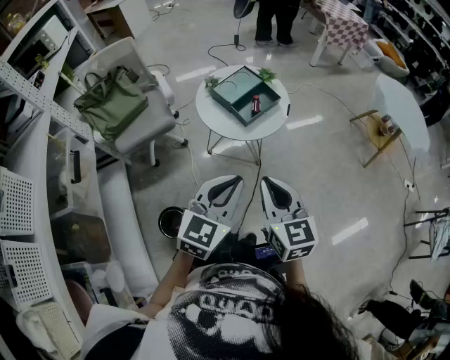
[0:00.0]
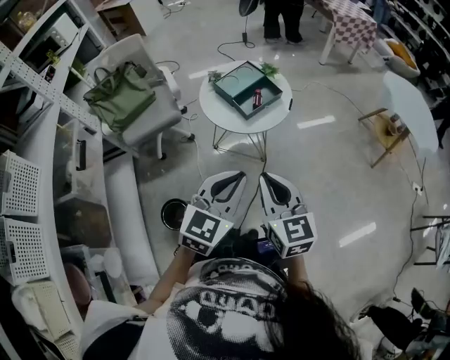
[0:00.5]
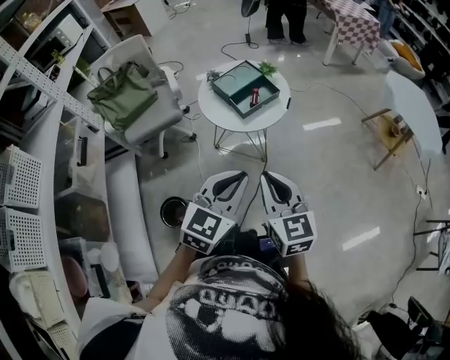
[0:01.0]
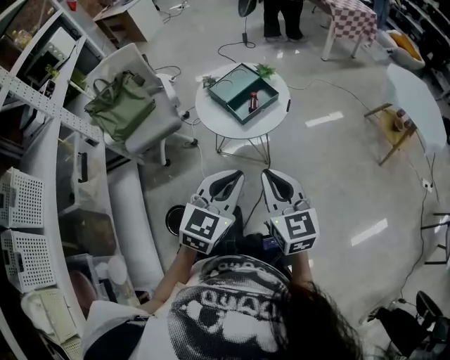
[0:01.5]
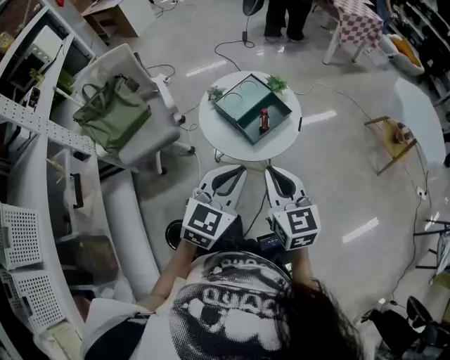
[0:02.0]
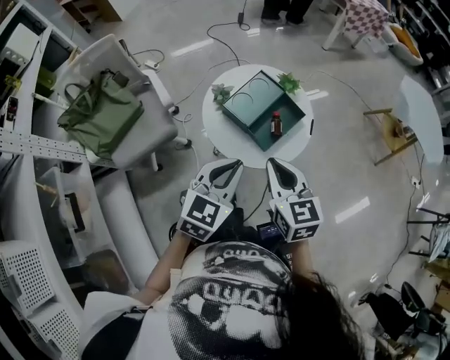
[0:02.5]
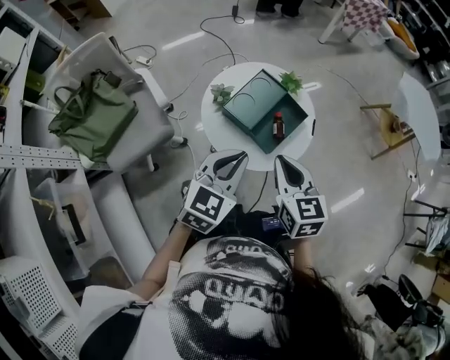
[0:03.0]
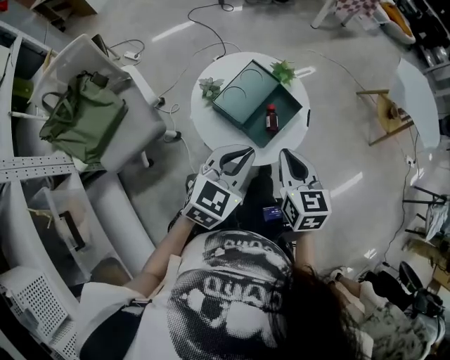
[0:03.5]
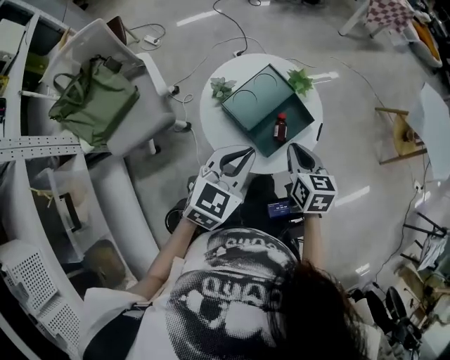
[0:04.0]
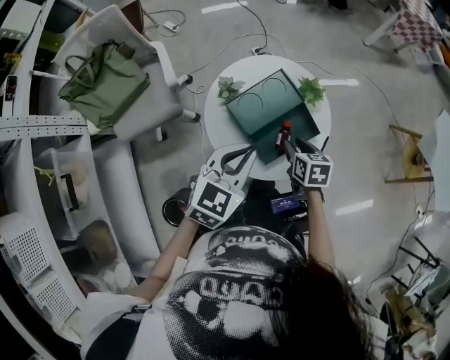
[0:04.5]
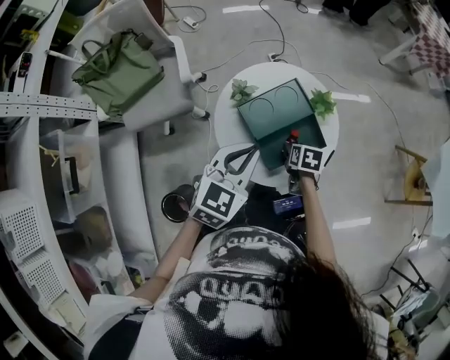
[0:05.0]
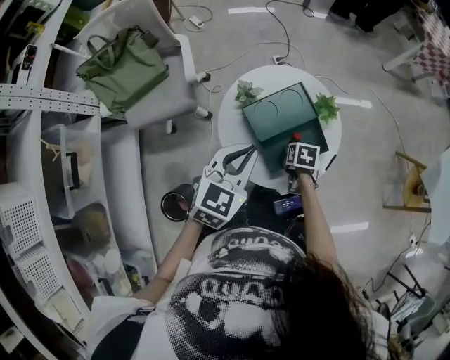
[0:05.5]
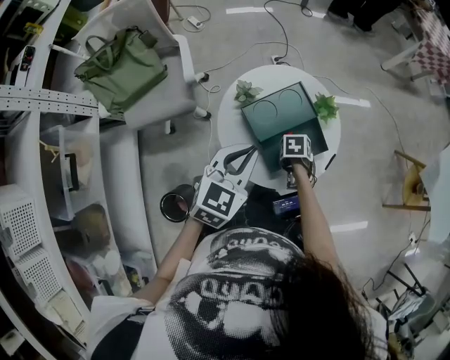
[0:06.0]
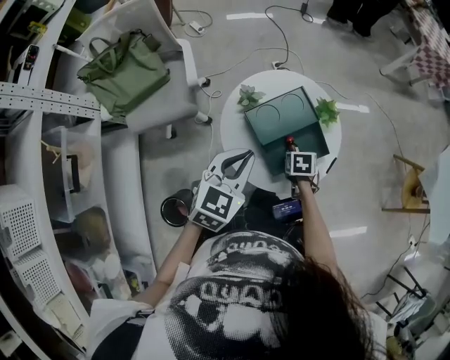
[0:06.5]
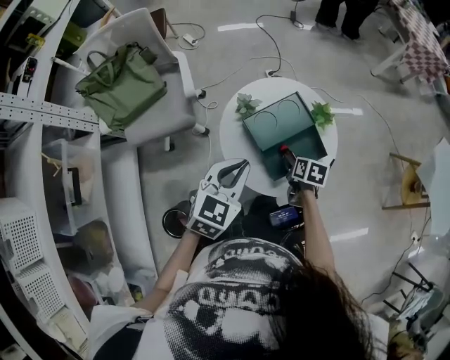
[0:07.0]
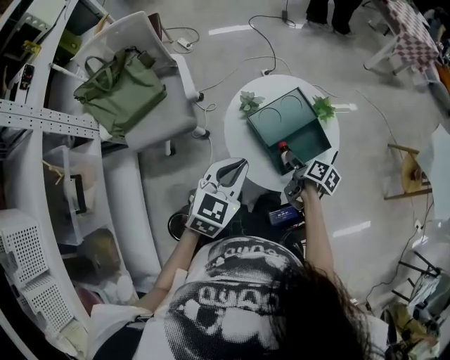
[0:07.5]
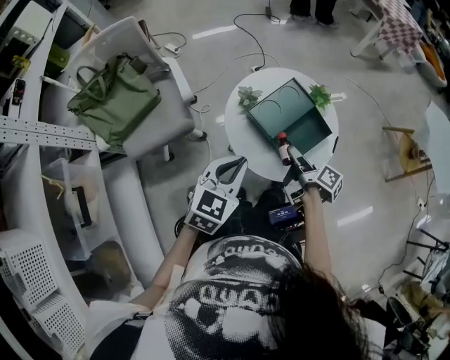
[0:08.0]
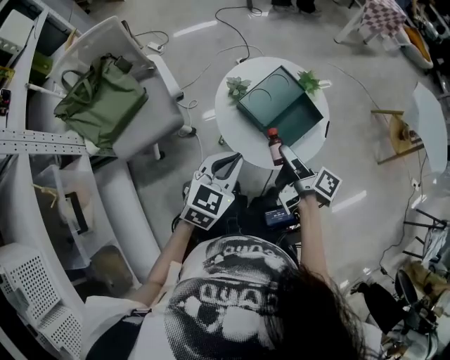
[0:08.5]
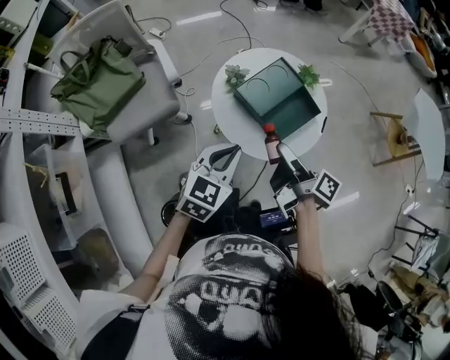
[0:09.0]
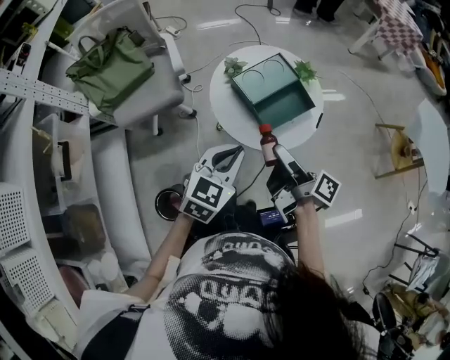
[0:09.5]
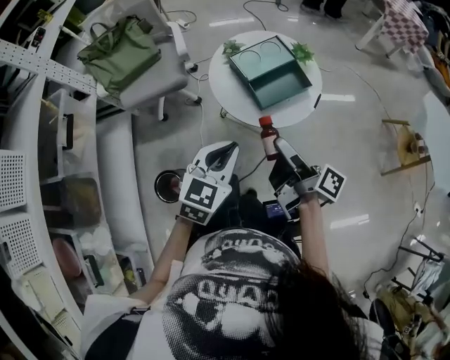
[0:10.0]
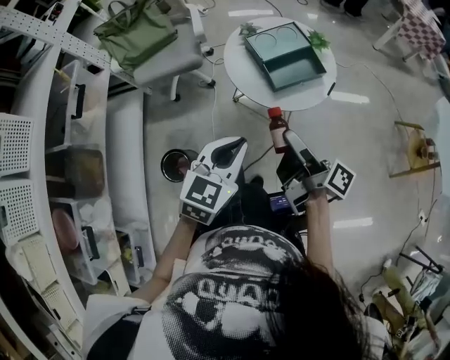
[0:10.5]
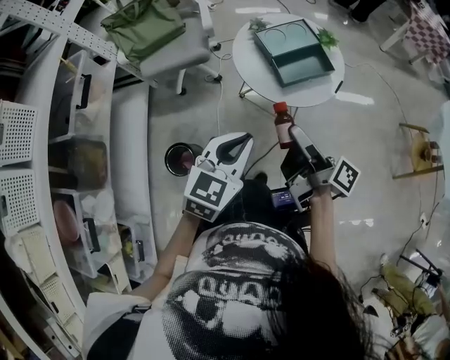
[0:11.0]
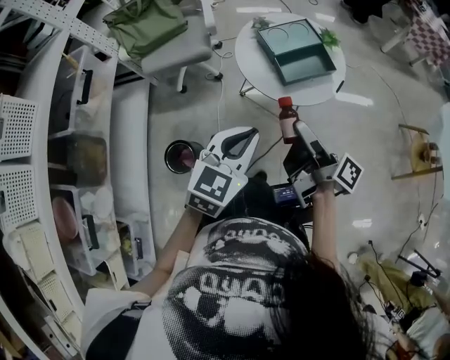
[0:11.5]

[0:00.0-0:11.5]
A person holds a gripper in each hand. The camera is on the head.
0:00.0 to 0:02.0: The two grippers go approximately 15 cm forward.
0:02.0 to 0:04.0: The grippers both shift forward and downward by some 25 cm. The right gripper changes its angle by about 30 degrees.
0:04.0 to 0:06.0: The right gripper travels downward by about 20 cm, tilts its fingers about 50 degrees downward, and opens.
0:06.0 to 0:07.5: The left gripper ends up roughly 10 cm from where it was. Meanwhile the right gripper shifts about 10 cm upward, and angles its fingers upward, by roughly 40 degrees.
0:07.5 to 0:09.5: The right gripper travels upward and backward by approximately 25 cm, and tips its fingers upward by approximately 40 degrees. Meanwhile the left gripper moves backward and to the right, approximately 10 cm.
0:09.5 to 0:11.5: Both grippers move backward, approximately 10 cm.

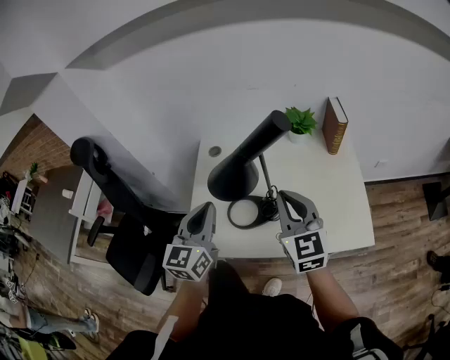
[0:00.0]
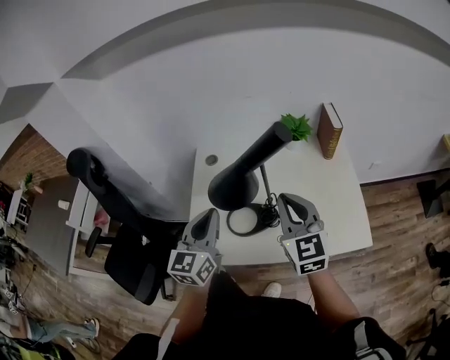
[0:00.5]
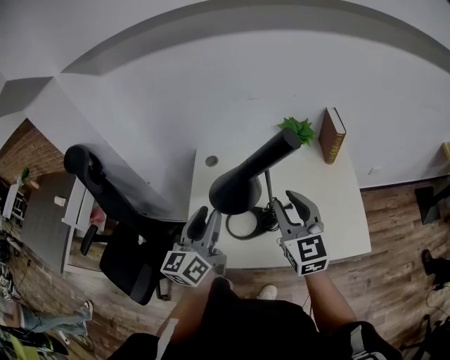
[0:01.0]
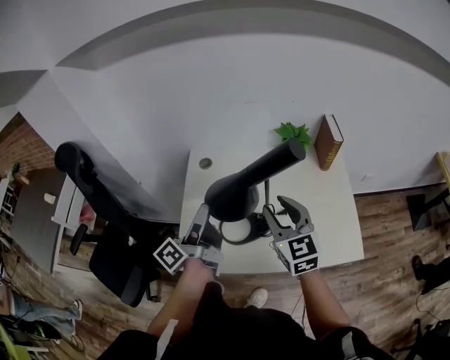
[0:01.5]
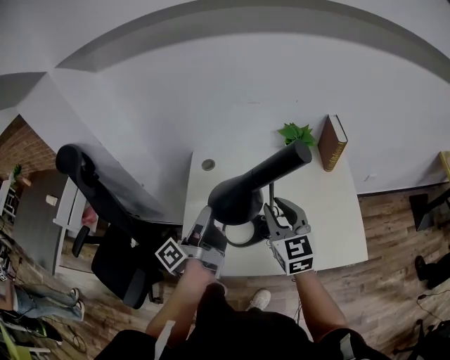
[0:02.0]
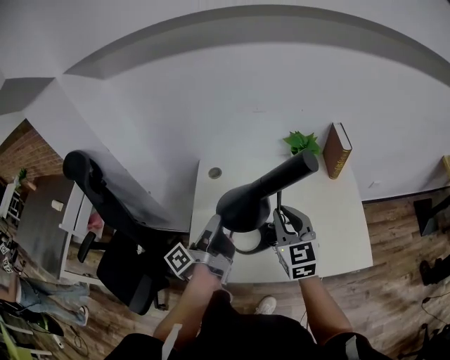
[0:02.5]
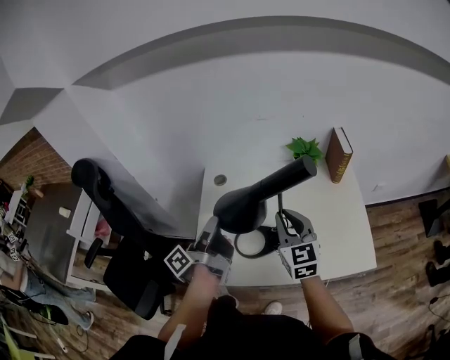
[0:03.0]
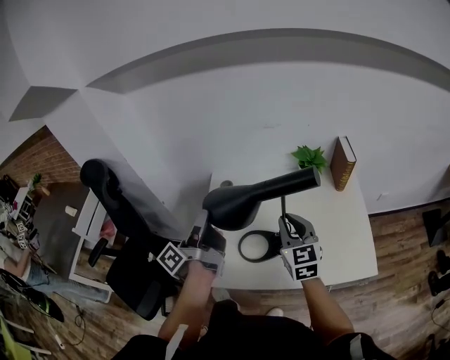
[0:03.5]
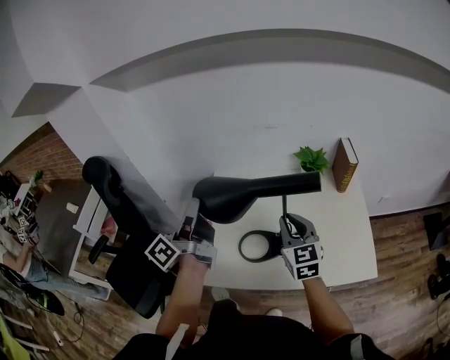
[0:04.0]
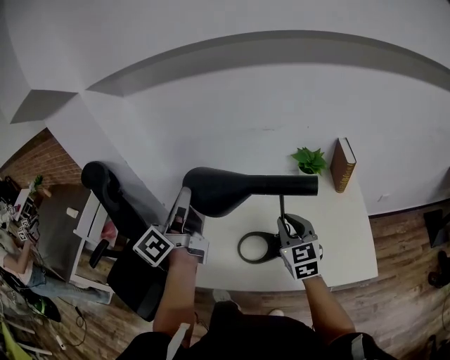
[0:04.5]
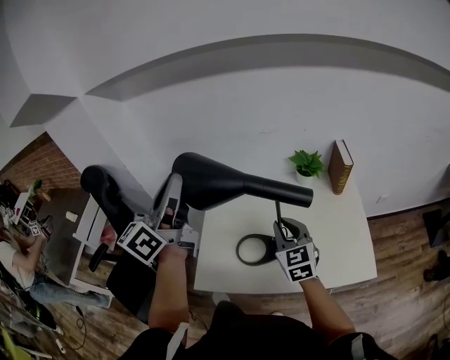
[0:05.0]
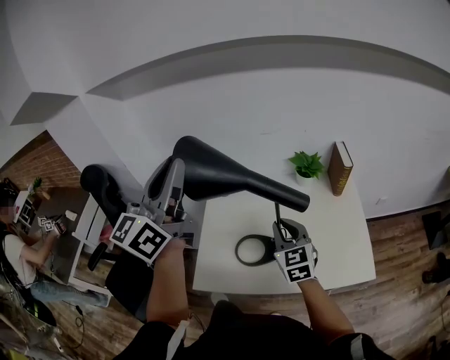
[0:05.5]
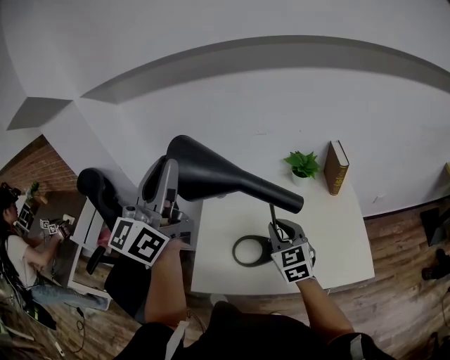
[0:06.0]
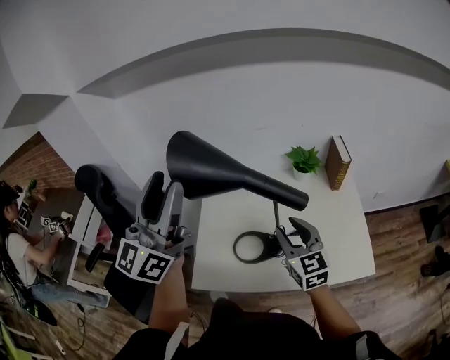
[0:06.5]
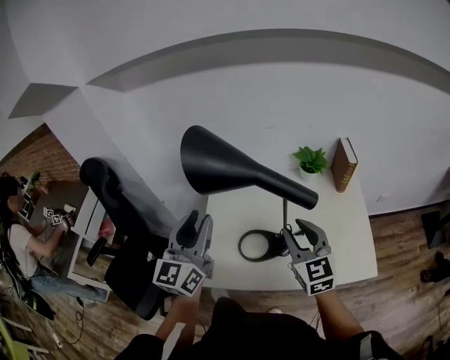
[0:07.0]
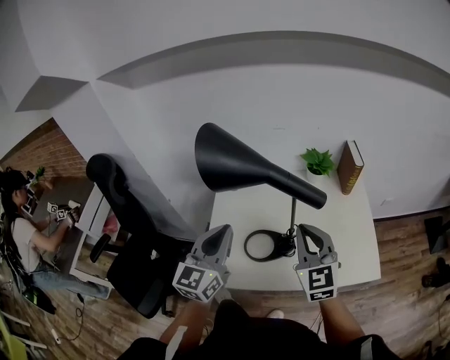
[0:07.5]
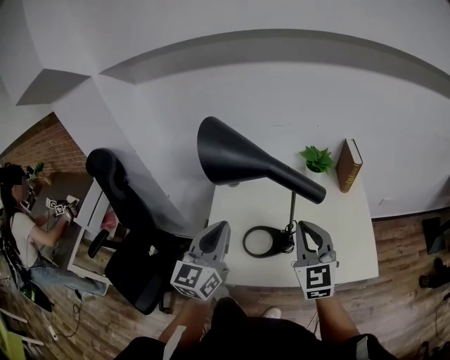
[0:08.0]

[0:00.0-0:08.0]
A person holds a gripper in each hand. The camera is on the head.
0:00.0 to 0:02.0: Both grippers move forward, some 5 cm. The left gripper rotates around the line of its fingers by roughly 80 degrees, counterclockwise from behind, and opens its fingers. The right gripper opens.
0:02.0 to 0:04.0: The left gripper goes some 15 cm upward and to the left, rotates about 20 degrees, and closes its fingers.
0:04.0 to 0:06.0: The left gripper heads upward, covering approximately 20 cm, and twists some 50 degrees clockwise, seen from behind.
0:06.0 to 0:08.0: The right gripper travels backward and upward by about 10 cm, and opens, then closes once more. Meanwhile the left gripper shifts approximately 20 cm downward, swivels some 20 degrees, and opens and closes again.

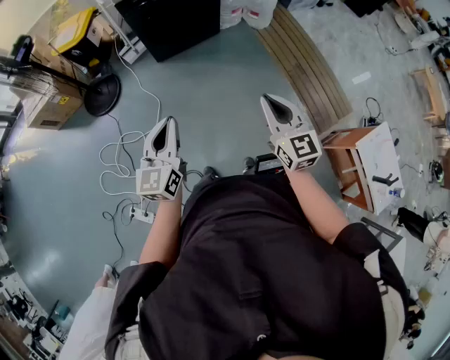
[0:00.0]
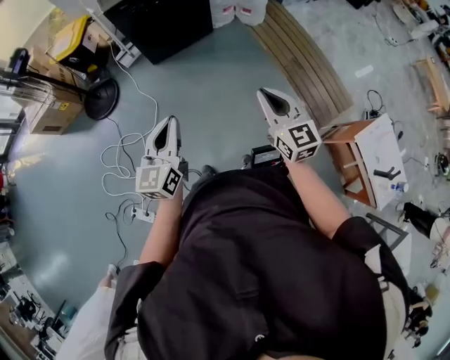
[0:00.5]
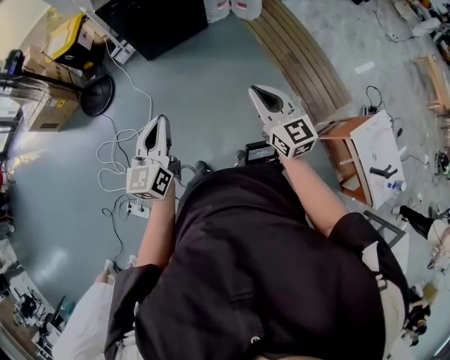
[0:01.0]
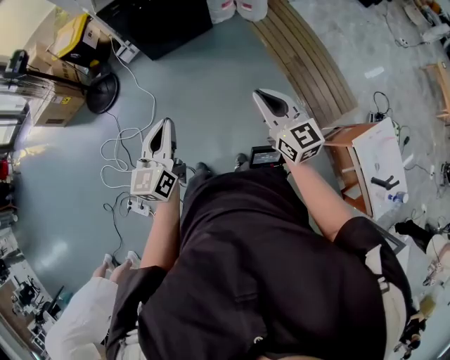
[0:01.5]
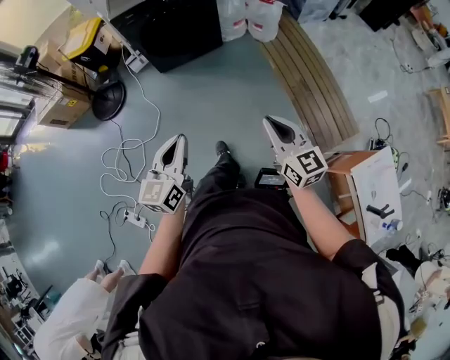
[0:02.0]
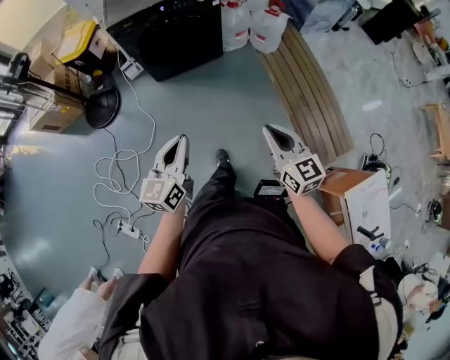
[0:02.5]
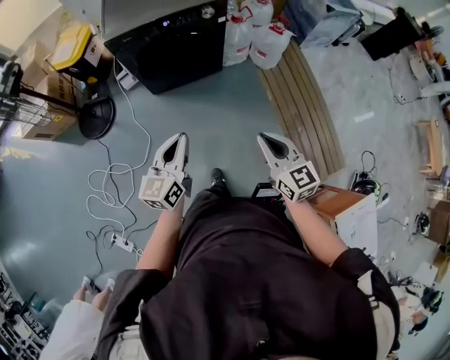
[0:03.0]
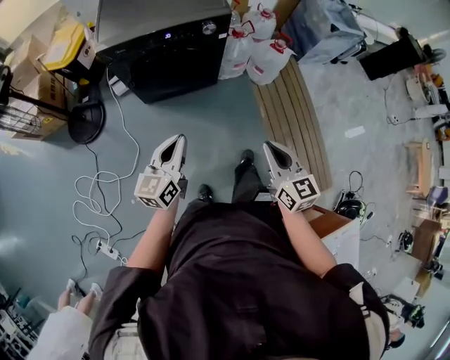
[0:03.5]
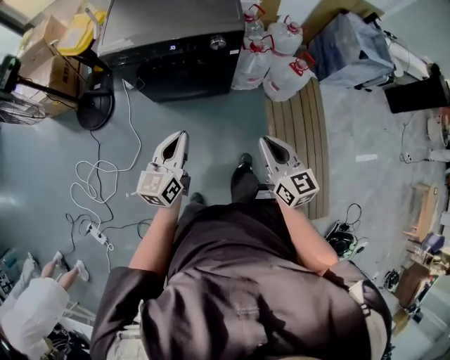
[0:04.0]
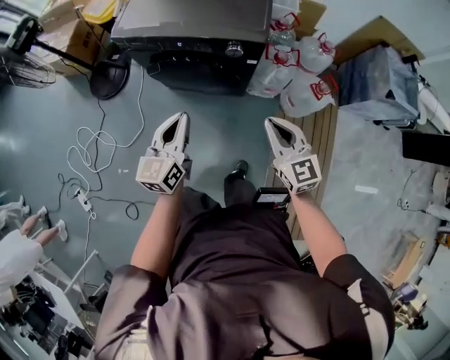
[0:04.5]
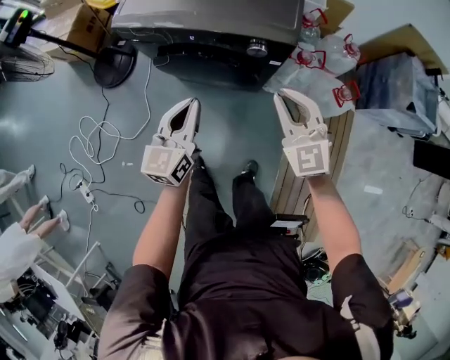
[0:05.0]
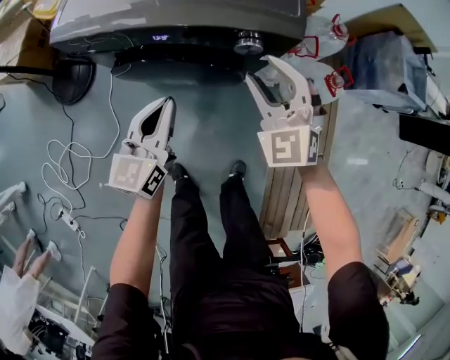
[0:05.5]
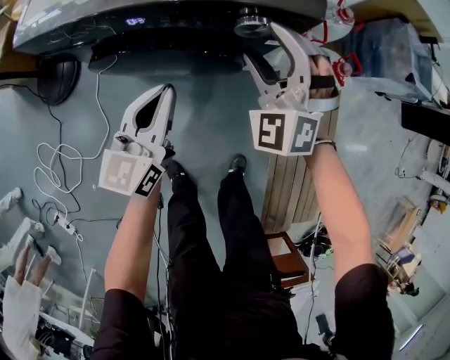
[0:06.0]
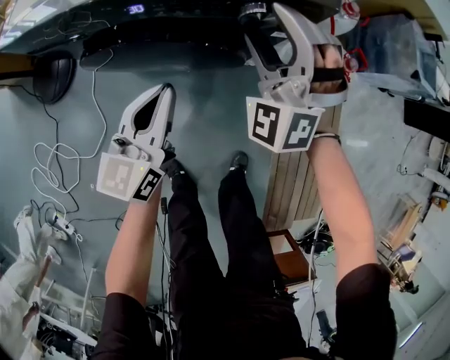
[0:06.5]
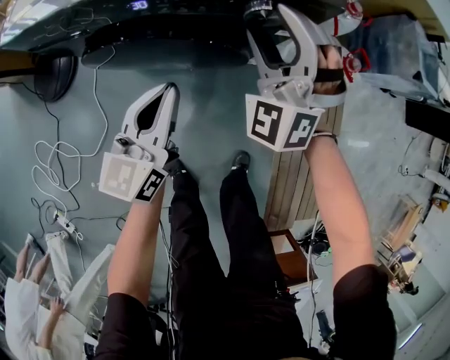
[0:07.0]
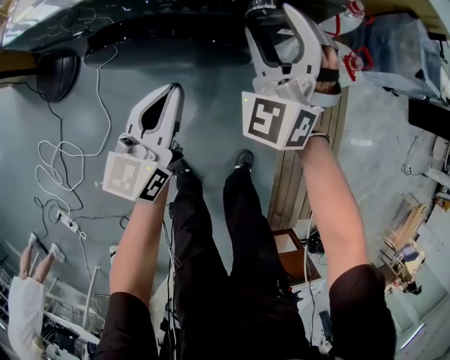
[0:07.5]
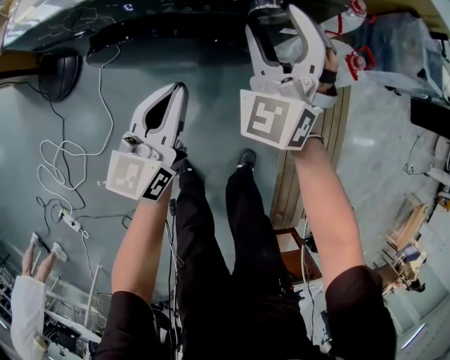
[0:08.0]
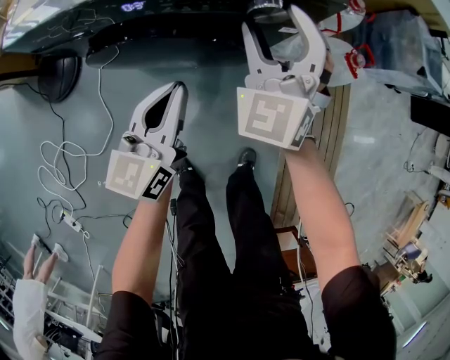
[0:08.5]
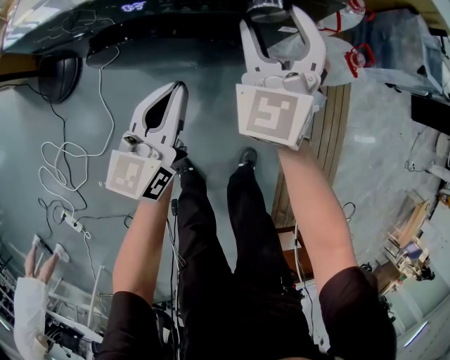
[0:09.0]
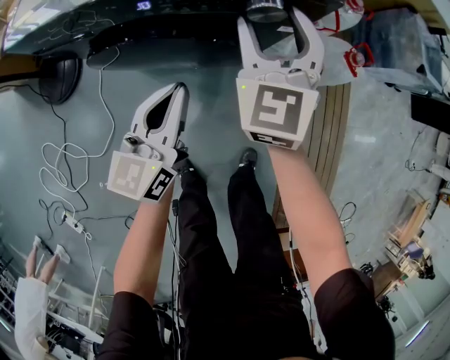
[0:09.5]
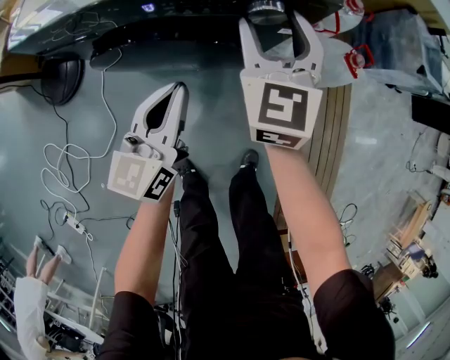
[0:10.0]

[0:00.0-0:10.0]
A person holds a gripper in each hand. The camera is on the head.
0:00.0 to 0:02.0: Both grippers move to the right, some 15 cm.
0:02.0 to 0:04.0: The two grippers travel together, forward, about 50 cm.
0:04.0 to 0:06.0: The two grippers go approximately 40 cm forward and downward. The right gripper twists about 80 degrees counterclockwise, seen from behind, and opens its fingers.
0:06.0 to 0:08.0: The right gripper turns by some 20 degrees.
0:08.0 to 0:10.0: The right gripper rotates some 40 degrees.
